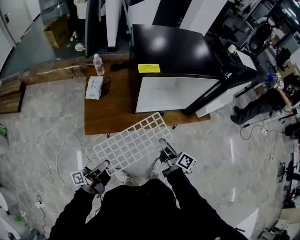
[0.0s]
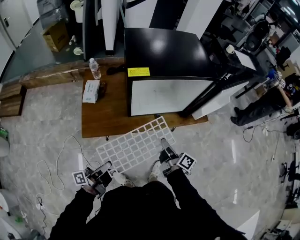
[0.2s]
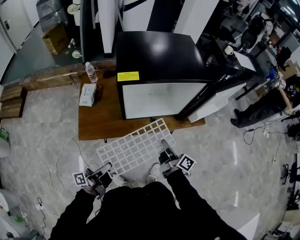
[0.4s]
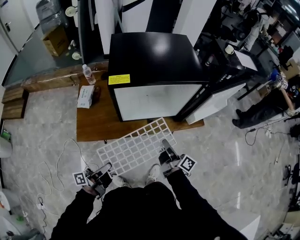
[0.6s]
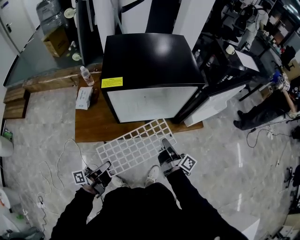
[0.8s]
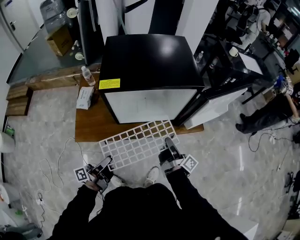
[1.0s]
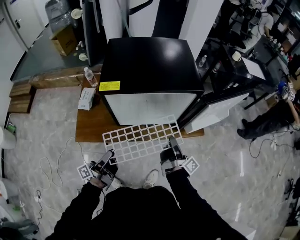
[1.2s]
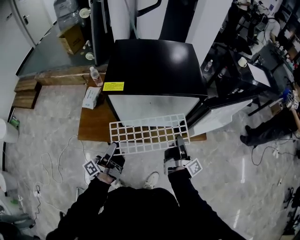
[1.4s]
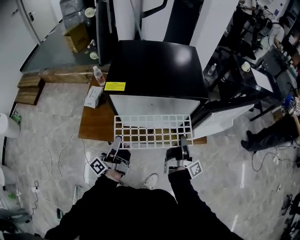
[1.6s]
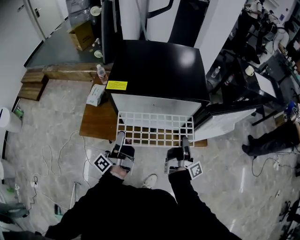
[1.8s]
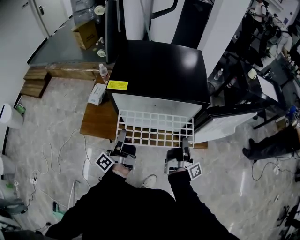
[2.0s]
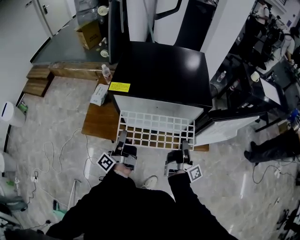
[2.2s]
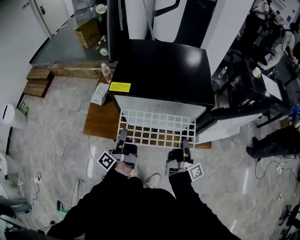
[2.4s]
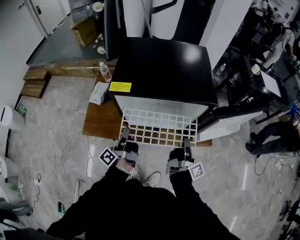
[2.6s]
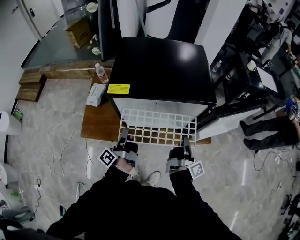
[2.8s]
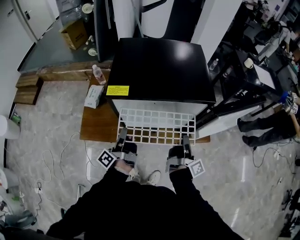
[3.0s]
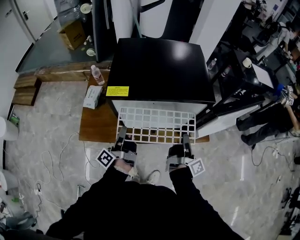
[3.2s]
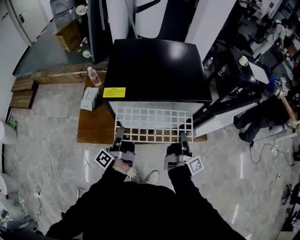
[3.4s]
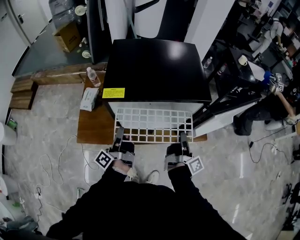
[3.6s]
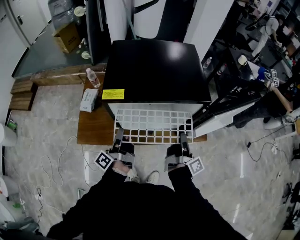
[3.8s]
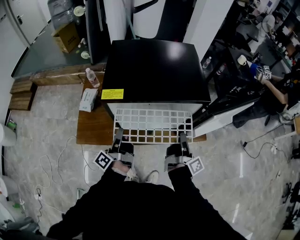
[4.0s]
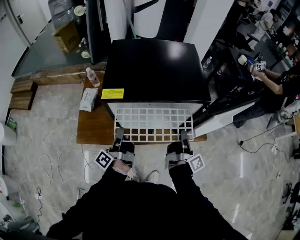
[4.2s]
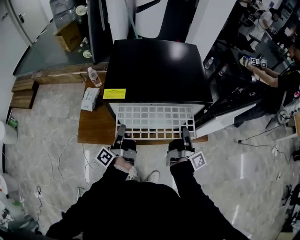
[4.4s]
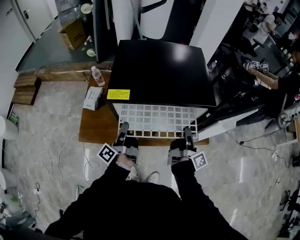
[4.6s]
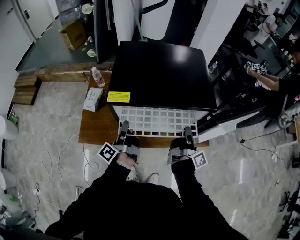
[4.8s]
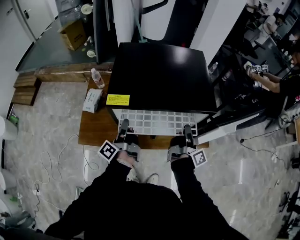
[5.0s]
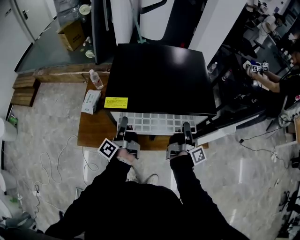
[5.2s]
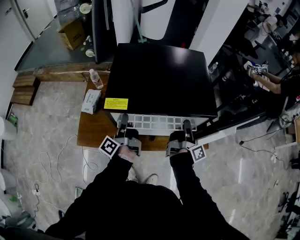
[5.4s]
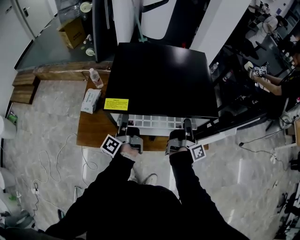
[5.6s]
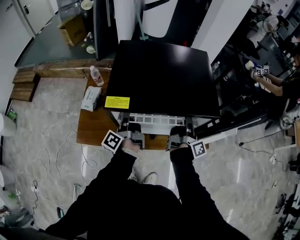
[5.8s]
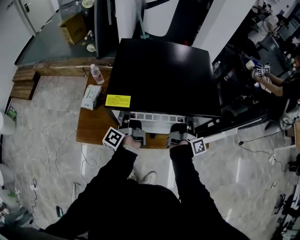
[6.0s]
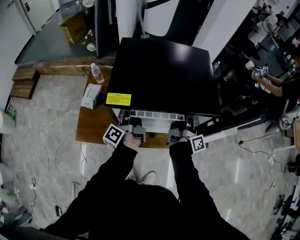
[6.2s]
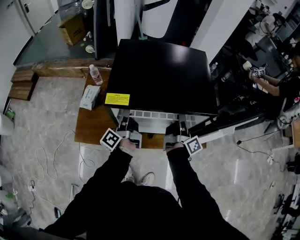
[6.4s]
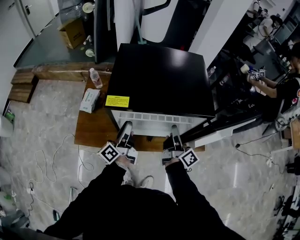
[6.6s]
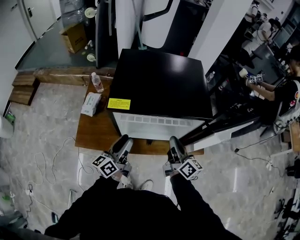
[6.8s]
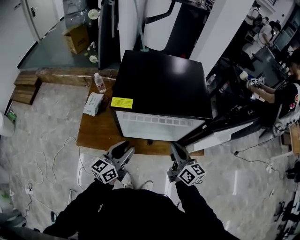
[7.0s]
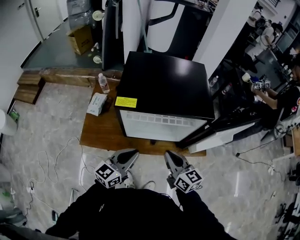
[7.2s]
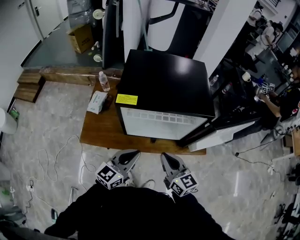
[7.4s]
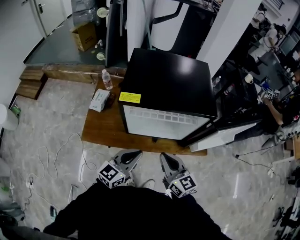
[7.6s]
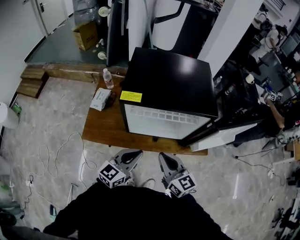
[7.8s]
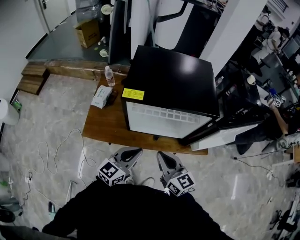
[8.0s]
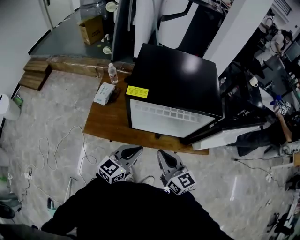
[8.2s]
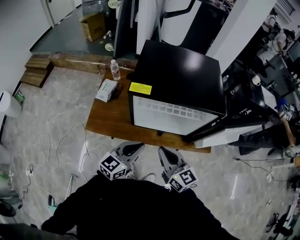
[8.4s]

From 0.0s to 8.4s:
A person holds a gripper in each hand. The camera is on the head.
From 0.0s to 1.4s: The left gripper shifts about 25 cm forward, to the right and upward, swivels approximately 20 degrees, and opens its fingers, while the right gripper heads to the right and forward, covering roughly 25 cm, swivels about 40 degrees, and closes up.
From 1.4s to 2.8s: The left gripper is displaced forward by roughly 10 cm, changes its angle by some 20 degrees, and closes its fingers.
From 2.8s to 4.2s: The grippers move only a little.
From 4.2s to 5.6s: Both grippers travel together forward, about 10 cm.
From 5.6s to 7.0s: The left gripper goes roughly 15 cm backward, rotates some 60 degrees, and opens up. Meanwhile the right gripper shifts roughly 15 cm backward, to the left and upward, twists some 50 degrees counterclockwise, seen from behind, and opens, then closes once more.
From 7.0s to 8.4s: The right gripper is displaced to the left and backward by about 10 cm; the left gripper goes roughly 5 cm backward, and closes its fingers.

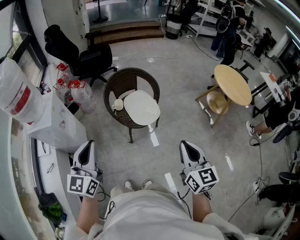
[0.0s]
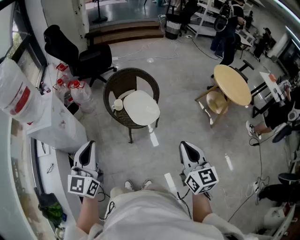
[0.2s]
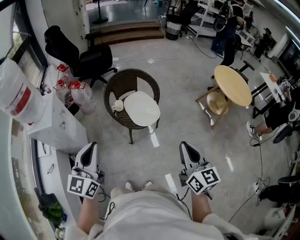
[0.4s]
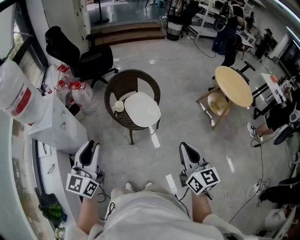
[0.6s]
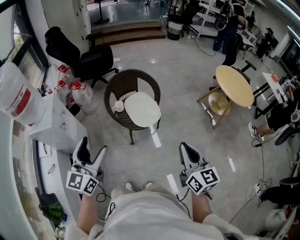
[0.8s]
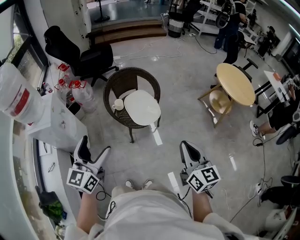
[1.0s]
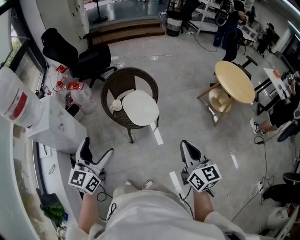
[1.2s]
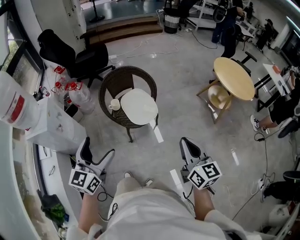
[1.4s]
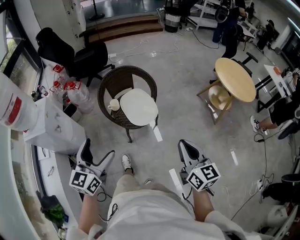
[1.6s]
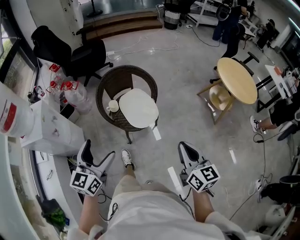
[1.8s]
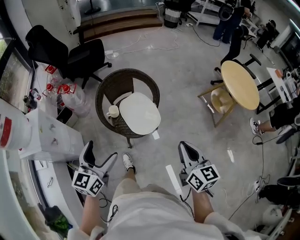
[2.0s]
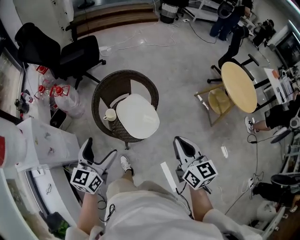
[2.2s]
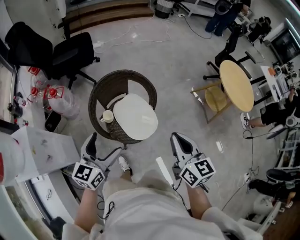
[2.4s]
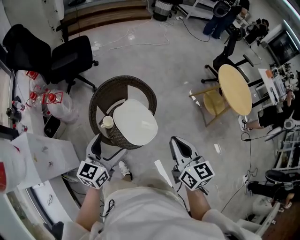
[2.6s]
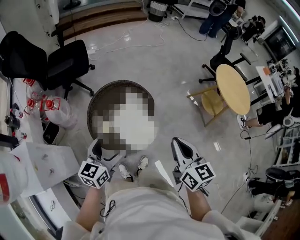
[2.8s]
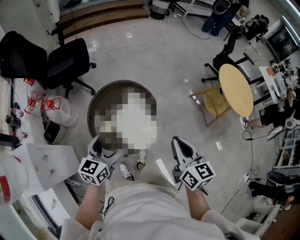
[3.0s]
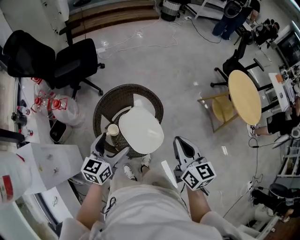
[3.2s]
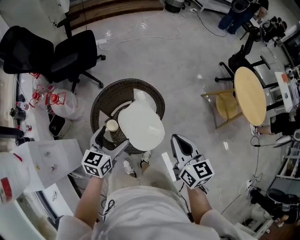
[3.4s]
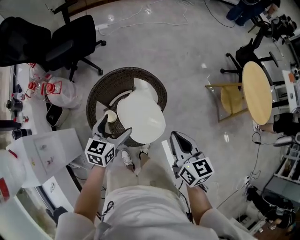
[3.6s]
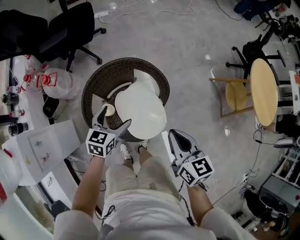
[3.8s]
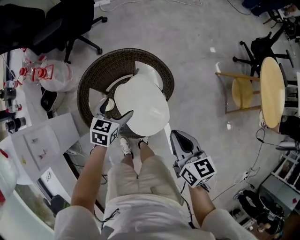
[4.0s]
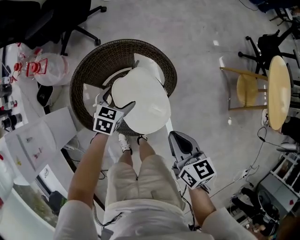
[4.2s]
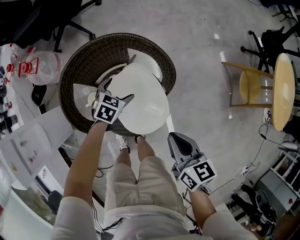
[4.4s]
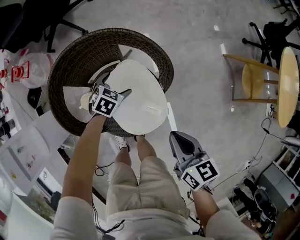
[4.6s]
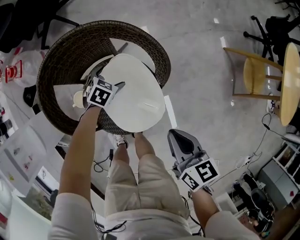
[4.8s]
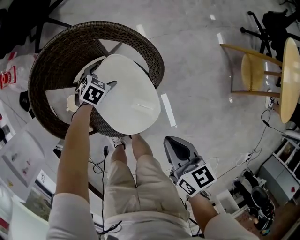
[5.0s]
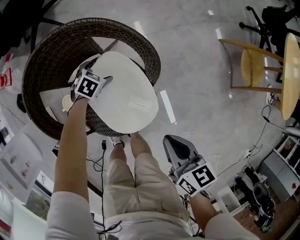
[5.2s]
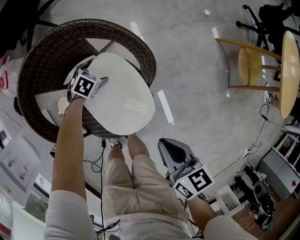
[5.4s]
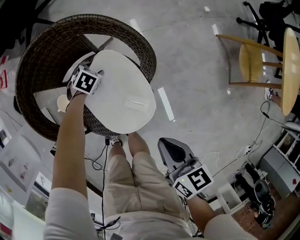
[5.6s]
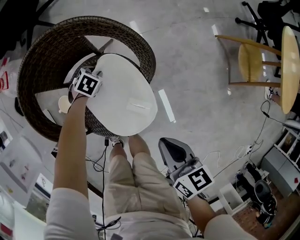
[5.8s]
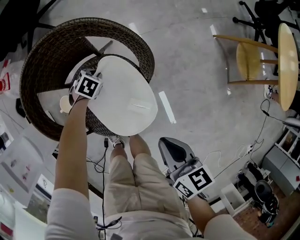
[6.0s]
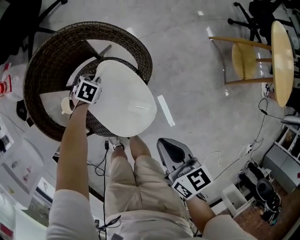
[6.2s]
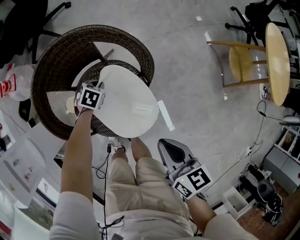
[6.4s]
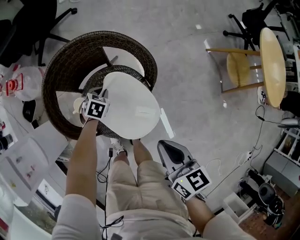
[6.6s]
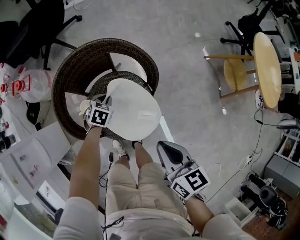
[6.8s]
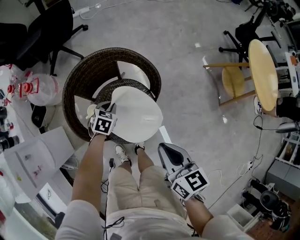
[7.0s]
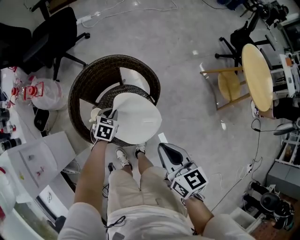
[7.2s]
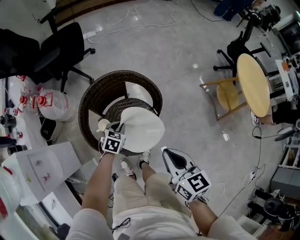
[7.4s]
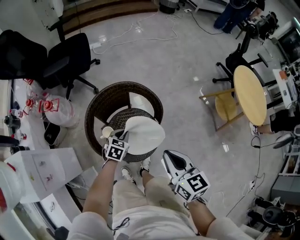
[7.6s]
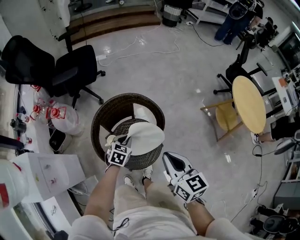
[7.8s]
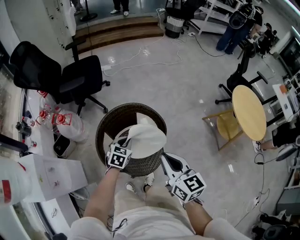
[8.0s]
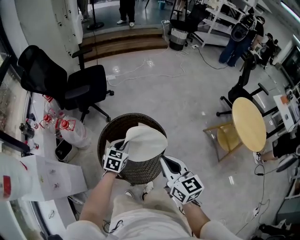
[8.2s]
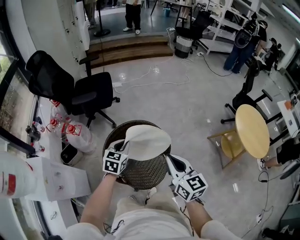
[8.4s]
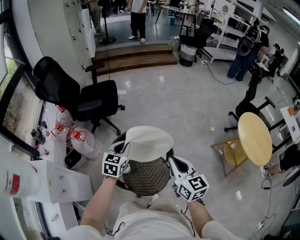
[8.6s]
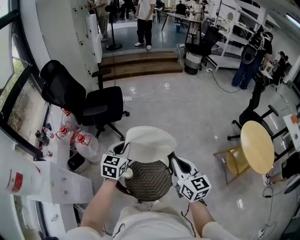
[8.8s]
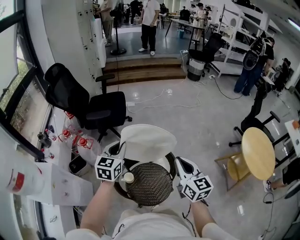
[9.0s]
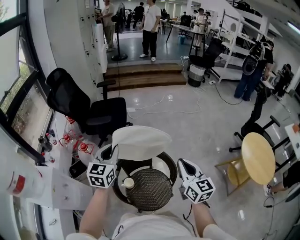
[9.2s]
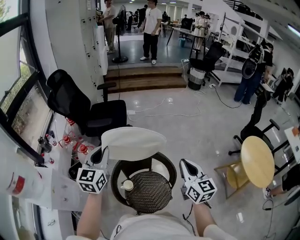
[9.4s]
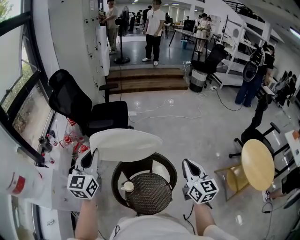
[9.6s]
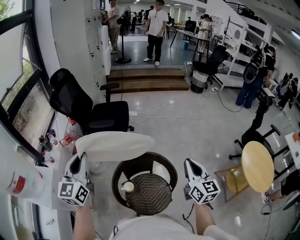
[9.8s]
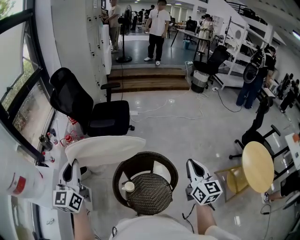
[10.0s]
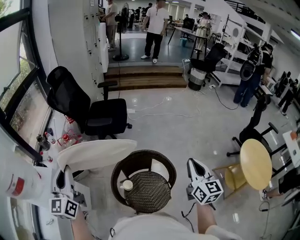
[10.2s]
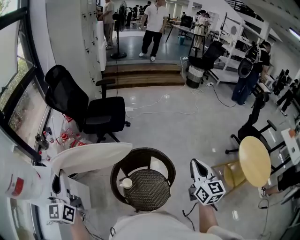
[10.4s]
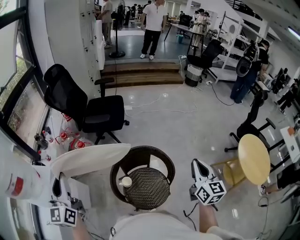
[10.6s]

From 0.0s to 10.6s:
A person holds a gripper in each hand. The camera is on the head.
From 0.0s to 1.6s: The right gripper heads to the right and forward, covering approximately 10 cm. The left gripper moves to the right, downward and forward, approximately 10 cm, and opens.
From 1.6s to 3.0s: The right gripper goes roughly 35 cm forward and to the left, while the left gripper shifts about 35 cm forward, and swivels approximately 20 degrees.
From 3.0s to 4.6s: The right gripper travels downward by some 30 cm, and swivels about 30 degrees; the left gripper moves downward and forward, approximately 50 cm, and tips its fingers downward by some 40 degrees.
From 4.6s to 6.0s: The left gripper is displaced downward by some 10 cm, and closes its fingers. The right gripper ends up roughly 5 cm from where it was.
From 6.0s to 7.6s: The left gripper is displaced upward and backward by roughly 30 cm, and swivels roughly 30 degrees. The right gripper is displaced upward and to the left by some 25 cm, and turns by some 20 degrees.
From 7.6s to 9.0s: The right gripper moves upward and forward, roughly 20 cm, and turns by some 20 degrees. The left gripper travels upward by approximately 35 cm, and points its fingers about 30 degrees further upward.
From 9.0s to 10.6s: The left gripper goes about 35 cm to the left, backward and upward, and changes its angle by about 40 degrees. The right gripper heads to the right, covering some 5 cm.

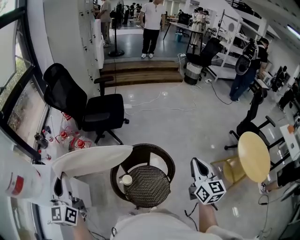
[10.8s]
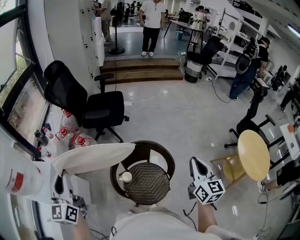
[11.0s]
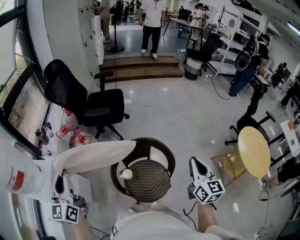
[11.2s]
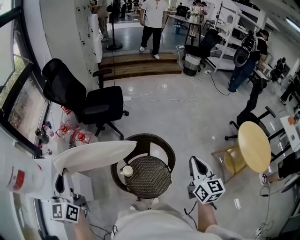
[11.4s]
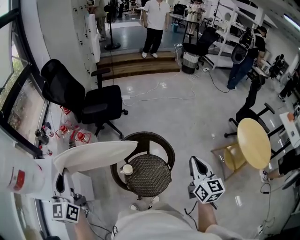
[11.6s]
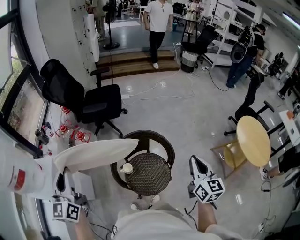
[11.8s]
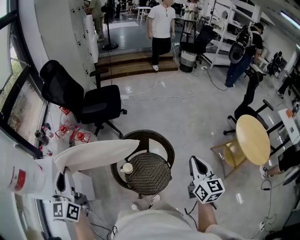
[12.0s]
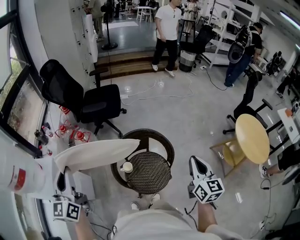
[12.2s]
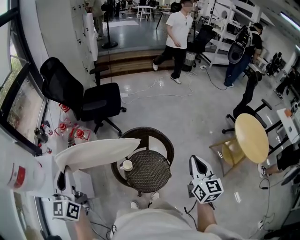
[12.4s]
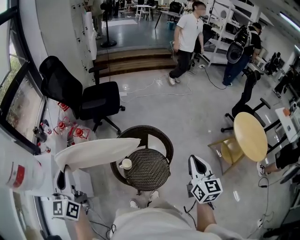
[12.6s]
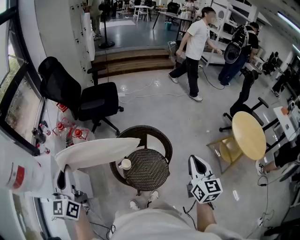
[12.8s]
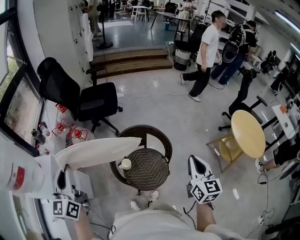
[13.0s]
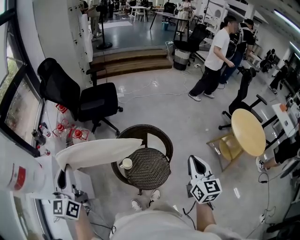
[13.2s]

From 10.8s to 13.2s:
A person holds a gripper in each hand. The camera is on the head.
From 10.8s to 12.0s: The right gripper heads backward, covering roughly 10 cm.
From 12.0s to 13.2s: The right gripper shifts by about 5 cm.

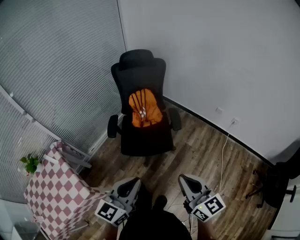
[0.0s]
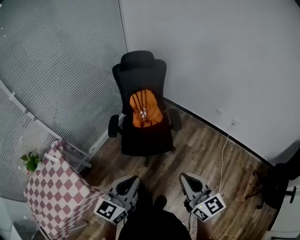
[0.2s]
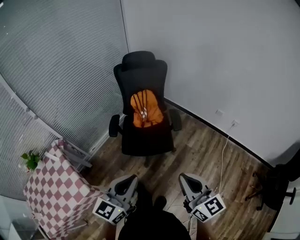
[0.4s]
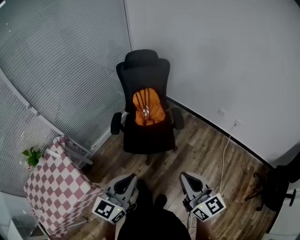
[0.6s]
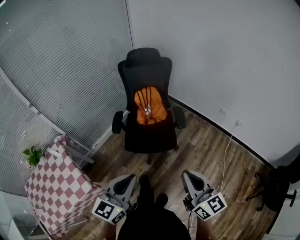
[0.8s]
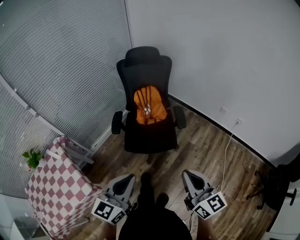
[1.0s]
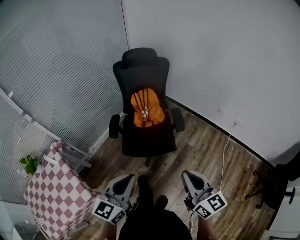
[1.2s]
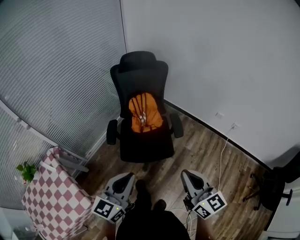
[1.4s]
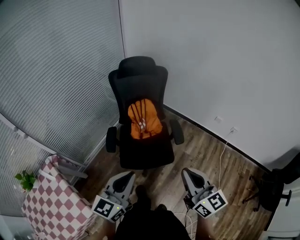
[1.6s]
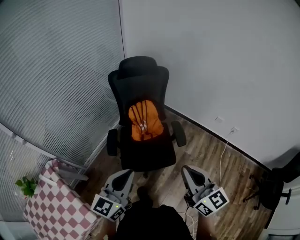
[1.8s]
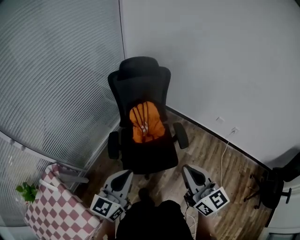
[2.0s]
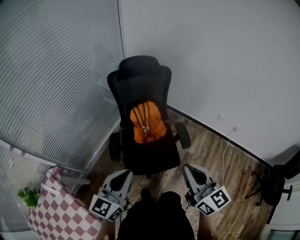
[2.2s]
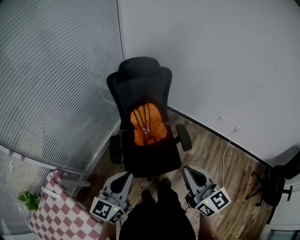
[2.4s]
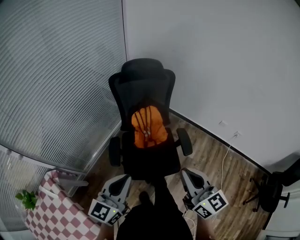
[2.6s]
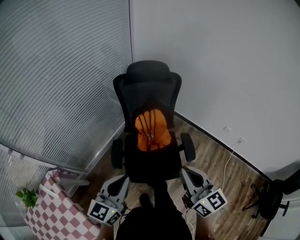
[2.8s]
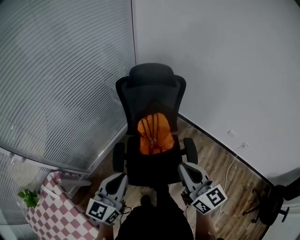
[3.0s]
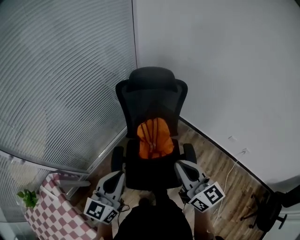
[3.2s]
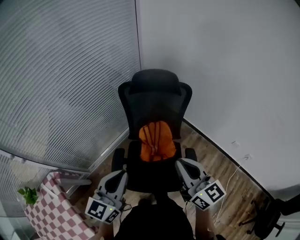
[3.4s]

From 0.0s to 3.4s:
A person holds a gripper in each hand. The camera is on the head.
From 0.0s to 1.6s: The right gripper heads forward, covering roughly 15 cm. Meanwhile the left gripper travels forward and to the left by approximately 15 cm.
From 1.6s to 3.4s: The two grippers go about 30 cm forward.
